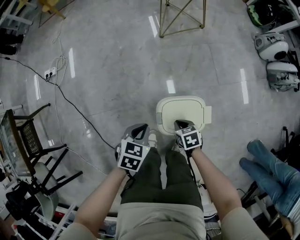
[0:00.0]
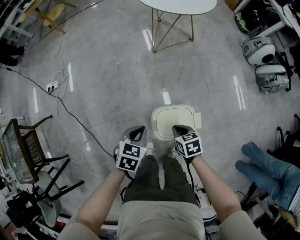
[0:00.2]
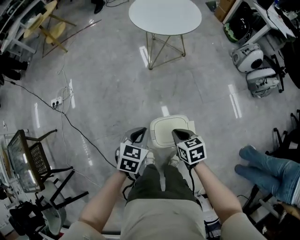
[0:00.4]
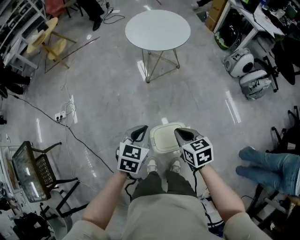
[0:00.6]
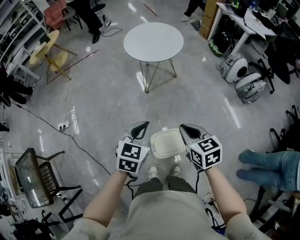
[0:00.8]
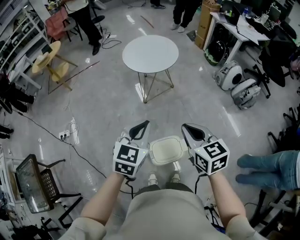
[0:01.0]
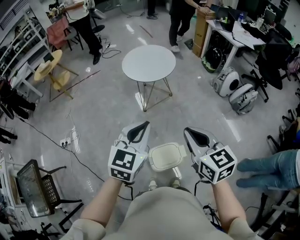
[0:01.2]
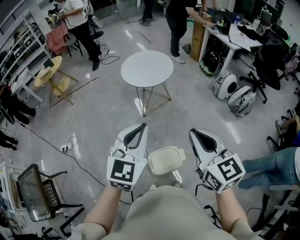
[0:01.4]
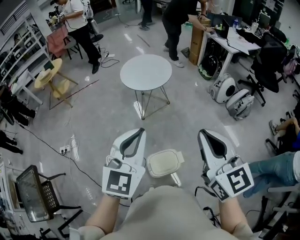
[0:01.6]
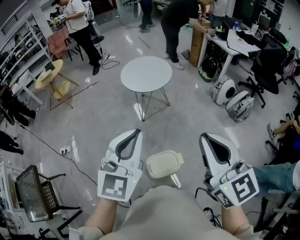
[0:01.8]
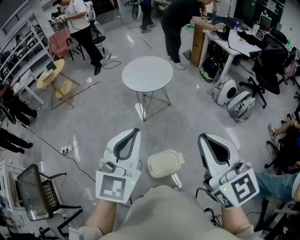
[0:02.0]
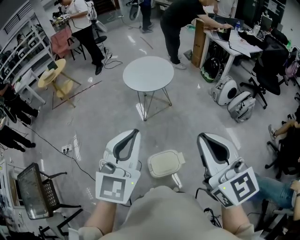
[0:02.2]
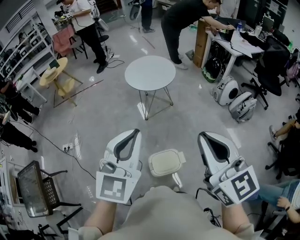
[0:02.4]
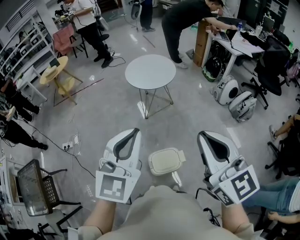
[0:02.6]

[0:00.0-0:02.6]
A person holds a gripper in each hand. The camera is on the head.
0:00.0 to 0:01.2: The grippers both shift upward by approximately 60 cm. The left gripper angles its fingers upward, by about 40 degrees, while the right gripper angles its fingers upward, by approximately 40 degrees.
0:01.2 to 0:02.6: Both grippers move upward and backward, roughly 15 cm. The right gripper changes its angle by about 20 degrees.

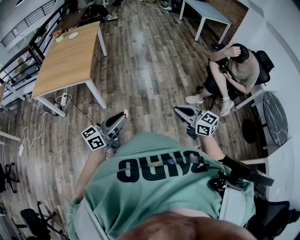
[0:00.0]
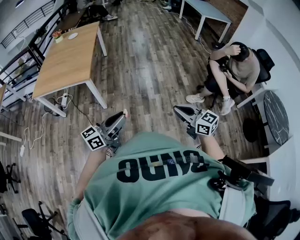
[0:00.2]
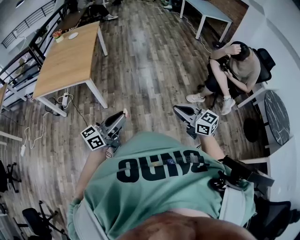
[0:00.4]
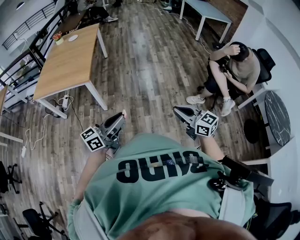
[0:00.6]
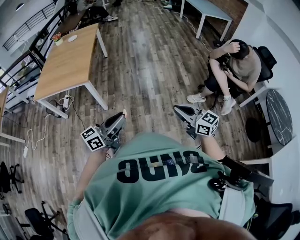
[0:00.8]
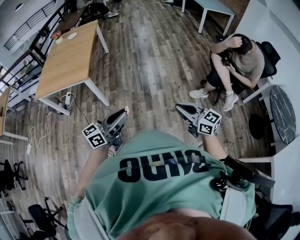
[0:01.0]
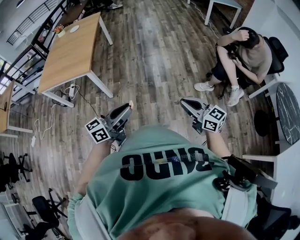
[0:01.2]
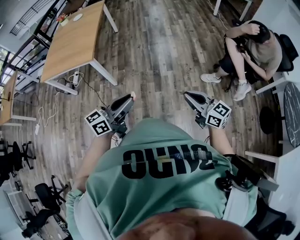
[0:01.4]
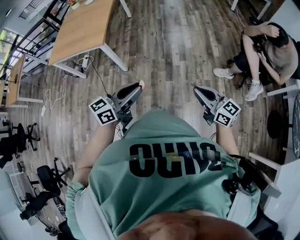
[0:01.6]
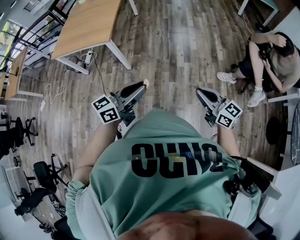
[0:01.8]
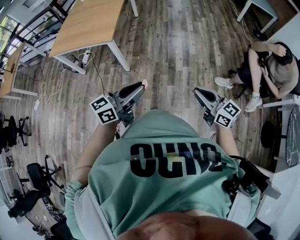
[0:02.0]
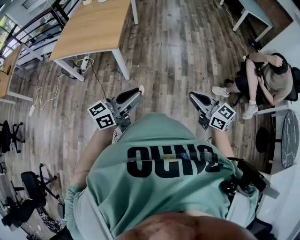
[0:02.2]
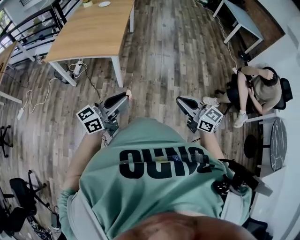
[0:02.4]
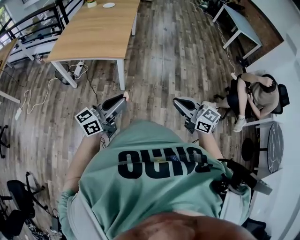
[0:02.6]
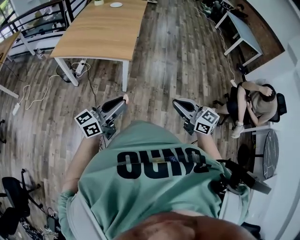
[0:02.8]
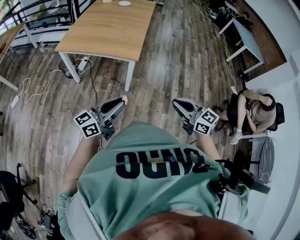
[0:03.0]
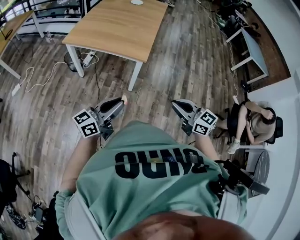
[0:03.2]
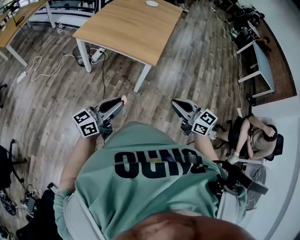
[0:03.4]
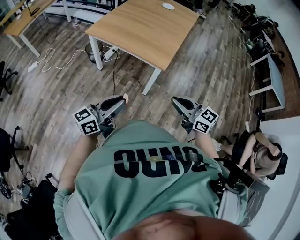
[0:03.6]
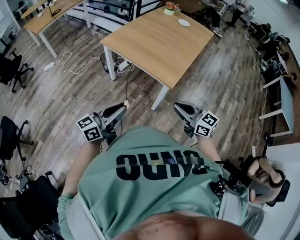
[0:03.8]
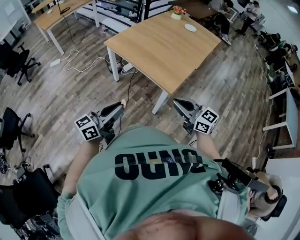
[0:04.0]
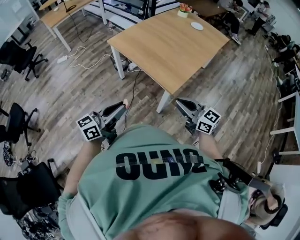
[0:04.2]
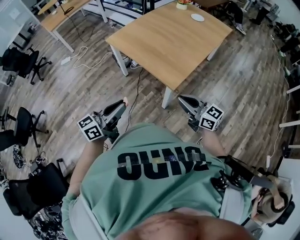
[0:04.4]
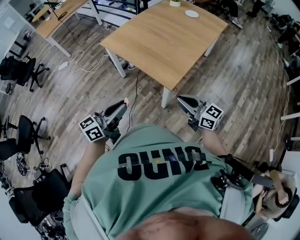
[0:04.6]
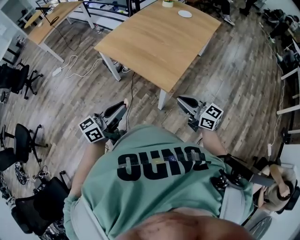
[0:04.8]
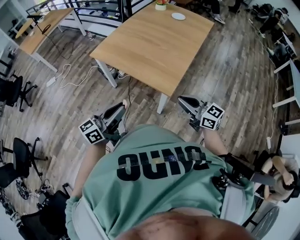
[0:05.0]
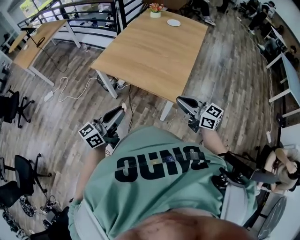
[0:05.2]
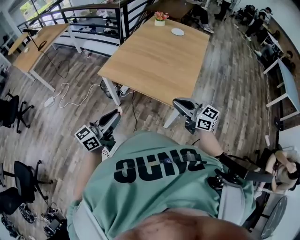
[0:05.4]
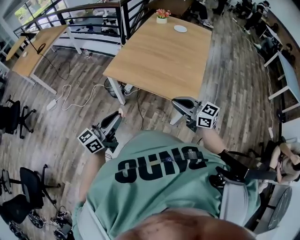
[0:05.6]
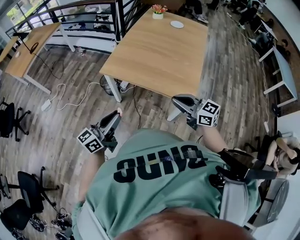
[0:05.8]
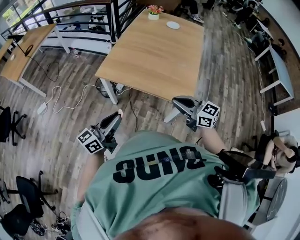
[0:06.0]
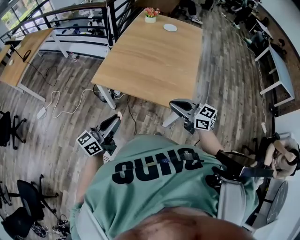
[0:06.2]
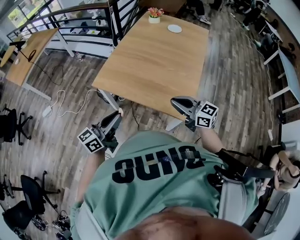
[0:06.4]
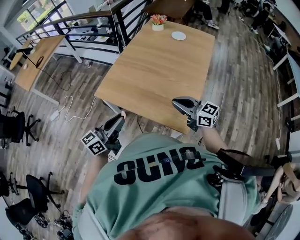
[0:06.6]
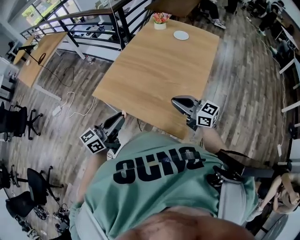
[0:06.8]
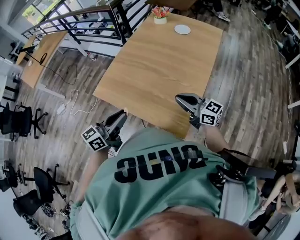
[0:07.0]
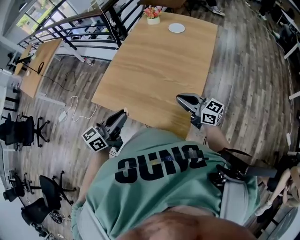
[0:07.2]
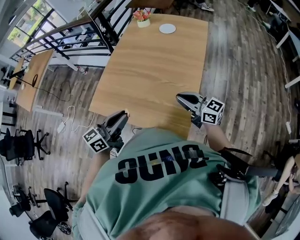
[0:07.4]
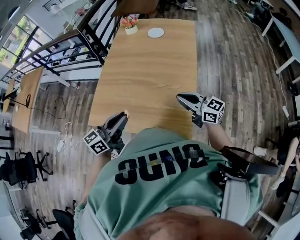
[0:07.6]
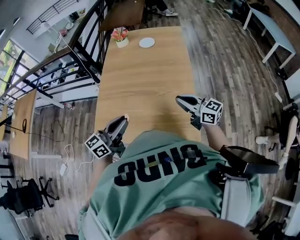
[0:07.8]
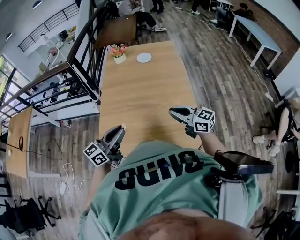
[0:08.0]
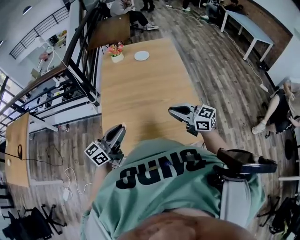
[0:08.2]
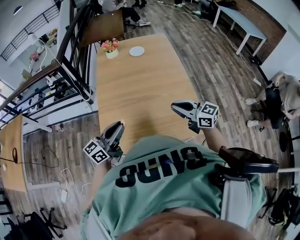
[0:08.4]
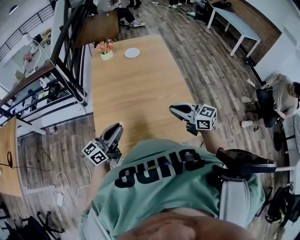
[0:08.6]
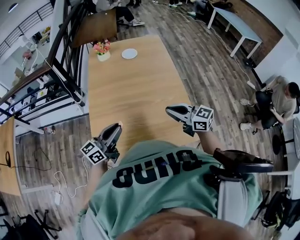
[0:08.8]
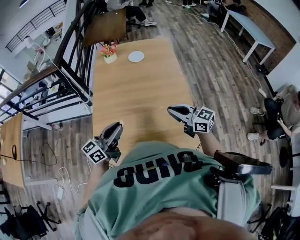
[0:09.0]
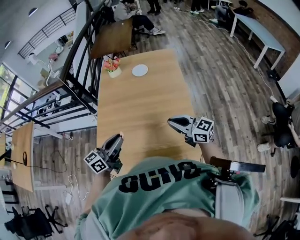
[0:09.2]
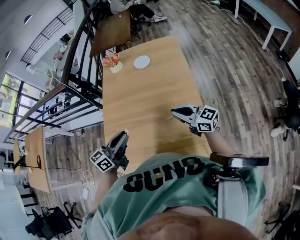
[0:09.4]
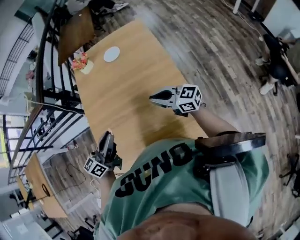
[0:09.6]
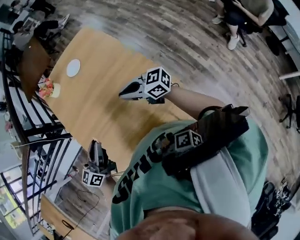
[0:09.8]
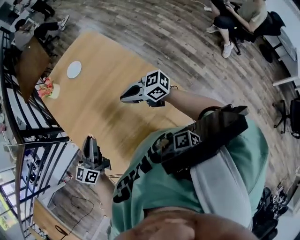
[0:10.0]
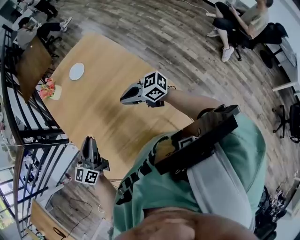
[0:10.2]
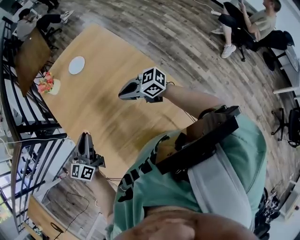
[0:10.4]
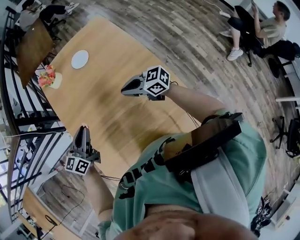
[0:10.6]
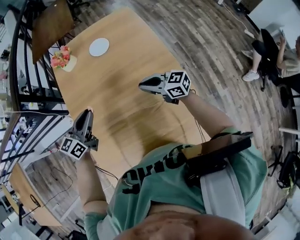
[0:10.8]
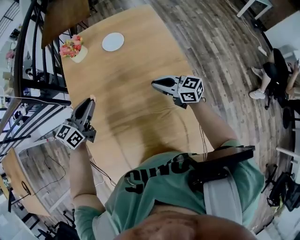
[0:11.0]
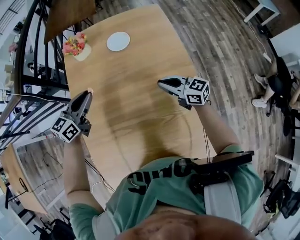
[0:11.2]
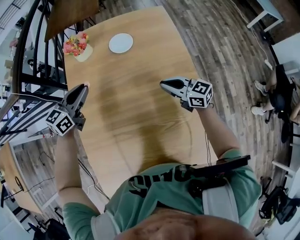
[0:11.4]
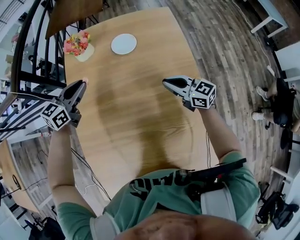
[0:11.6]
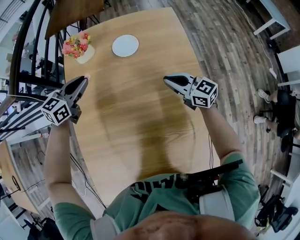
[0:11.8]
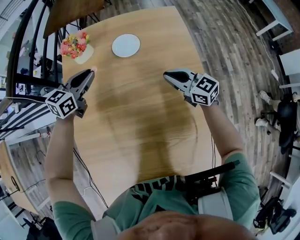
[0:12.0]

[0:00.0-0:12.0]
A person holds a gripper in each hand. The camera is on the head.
0:00.0 to 0:01.6: The grippers both shift to the right by approximately 10 cm.
0:01.6 to 0:03.0: Both grippers are carried to the left, approximately 50 cm. The right gripper swivels roughly 20 degrees.
0:03.0 to 0:04.4: The right gripper changes place by about 35 cm, and rotates some 40 degrees, while the left gripper shifts by roughly 20 cm, and swivels roughly 40 degrees.
0:04.4 to 0:06.0: Both grippers travel together to the left and forward, approximately 30 cm.
0:06.0 to 0:07.6: The two grippers go roughly 35 cm forward and to the right.
0:07.6 to 0:09.0: The left gripper moves forward and to the left, roughly 15 cm; the right gripper goes approximately 10 cm to the left.
0:09.0 to 0:10.4: The right gripper travels forward and downward by about 20 cm. Meanwhile the left gripper shifts roughly 20 cm forward.
0:10.4 to 0:12.0: The left gripper moves forward, roughly 40 cm. The right gripper heads forward and downward, covering approximately 35 cm.

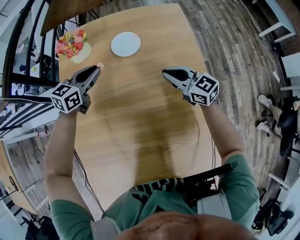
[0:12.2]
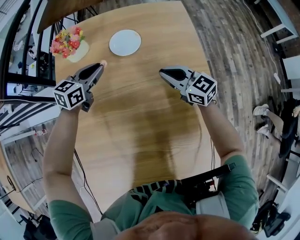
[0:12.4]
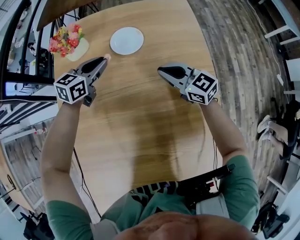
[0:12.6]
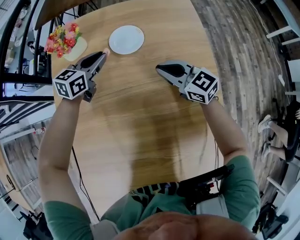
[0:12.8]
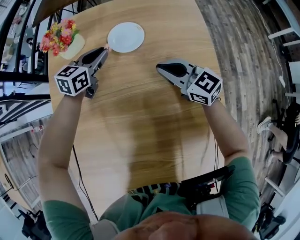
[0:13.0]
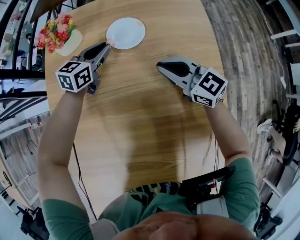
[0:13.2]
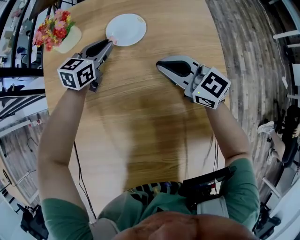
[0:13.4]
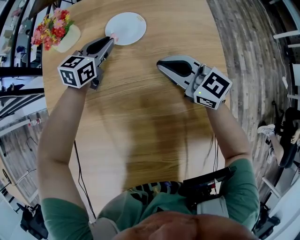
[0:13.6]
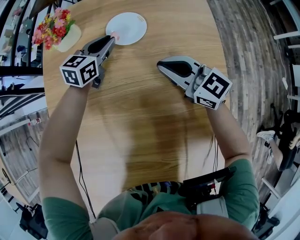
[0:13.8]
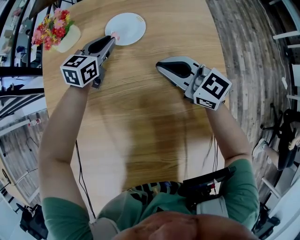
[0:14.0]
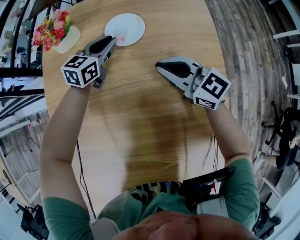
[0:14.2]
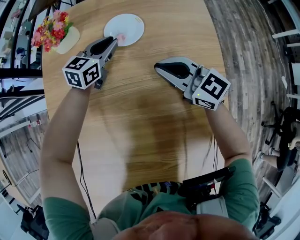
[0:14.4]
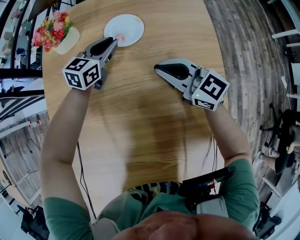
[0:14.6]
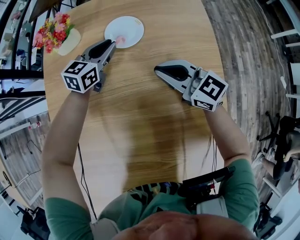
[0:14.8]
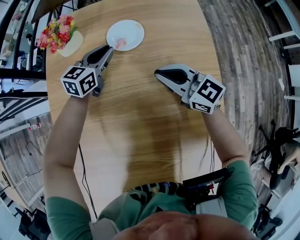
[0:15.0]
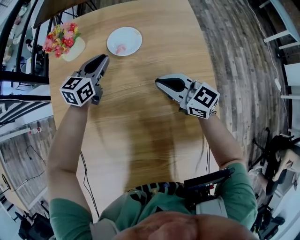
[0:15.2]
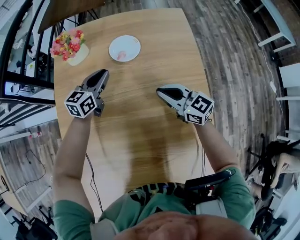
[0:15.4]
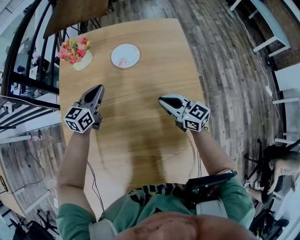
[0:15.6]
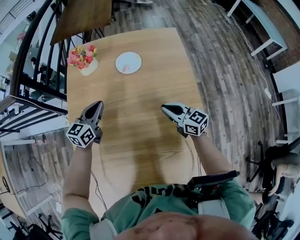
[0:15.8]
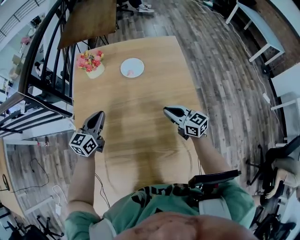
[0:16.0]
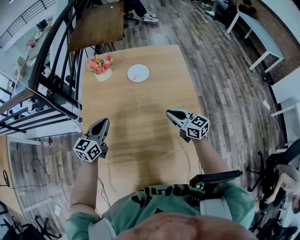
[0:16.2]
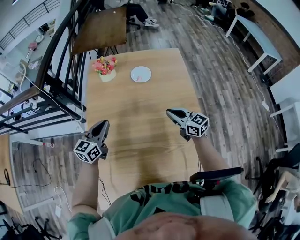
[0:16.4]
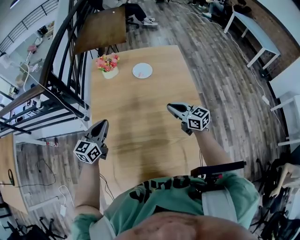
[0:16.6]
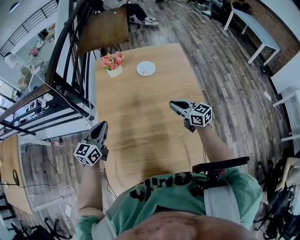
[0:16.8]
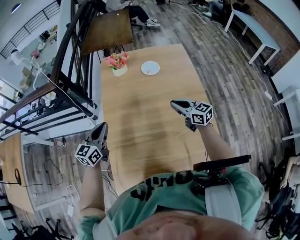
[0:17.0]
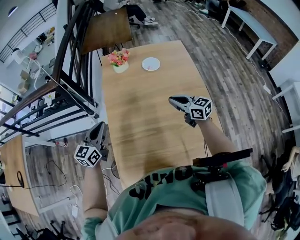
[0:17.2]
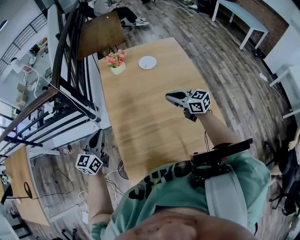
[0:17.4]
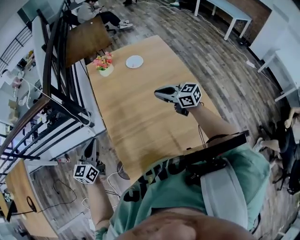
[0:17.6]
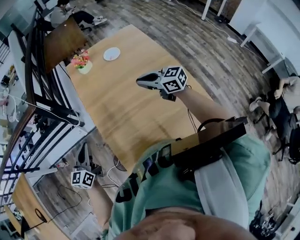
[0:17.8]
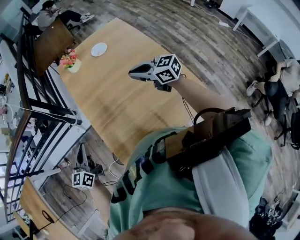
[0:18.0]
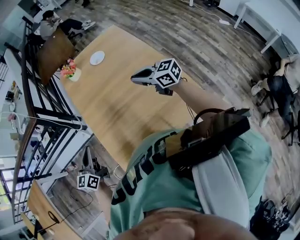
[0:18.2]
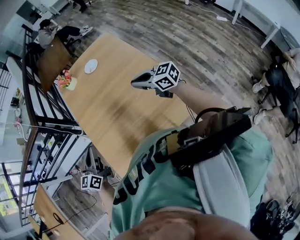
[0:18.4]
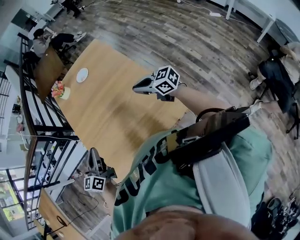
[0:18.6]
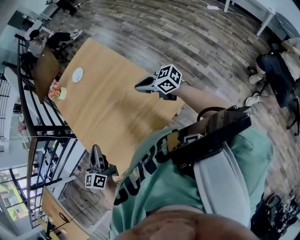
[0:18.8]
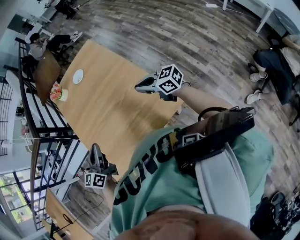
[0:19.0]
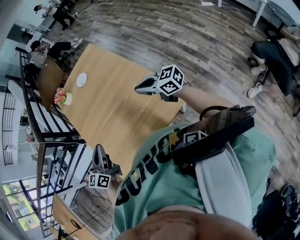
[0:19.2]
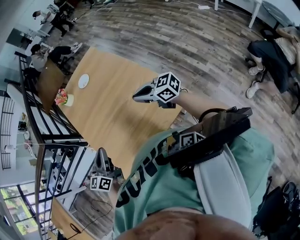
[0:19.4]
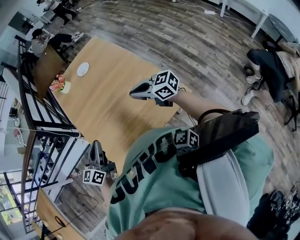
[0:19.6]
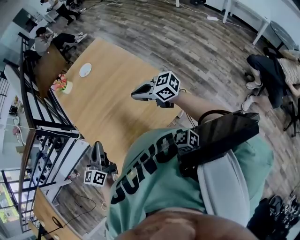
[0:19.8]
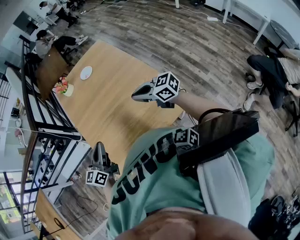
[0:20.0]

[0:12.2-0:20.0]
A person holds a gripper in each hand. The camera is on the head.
0:12.2 to 0:13.8: The right gripper goes about 5 cm forward, while the left gripper goes roughly 20 cm downward, forward and to the right.
0:13.8 to 0:15.4: The right gripper goes approximately 5 cm backward. Meanwhile the left gripper travels backward and upward by approximately 10 cm.
0:15.4 to 0:16.8: The left gripper heads backward, upward and to the left, covering about 50 cm. The right gripper heads backward and upward, covering about 25 cm.
0:16.8 to 0:18.4: Both grippers travel together backward, some 25 cm.
0:18.4 to 0:20.0: The left gripper shifts roughly 10 cm to the right and backward, while the right gripper heads backward, covering about 10 cm, and moves approximately 15 cm to the right and comes back.

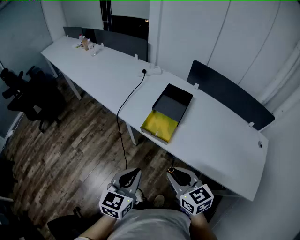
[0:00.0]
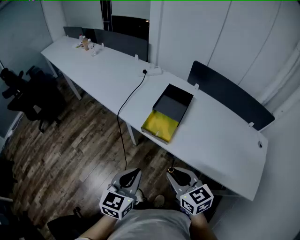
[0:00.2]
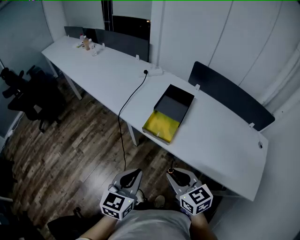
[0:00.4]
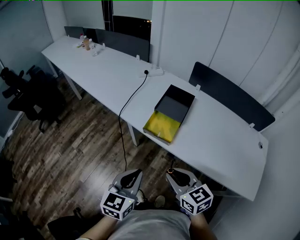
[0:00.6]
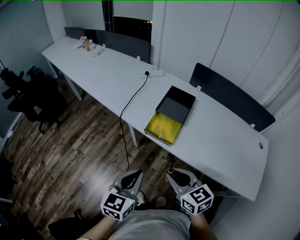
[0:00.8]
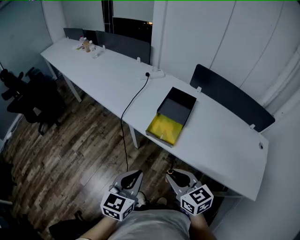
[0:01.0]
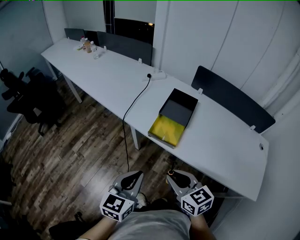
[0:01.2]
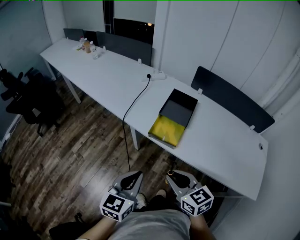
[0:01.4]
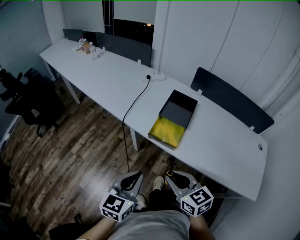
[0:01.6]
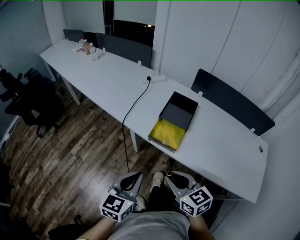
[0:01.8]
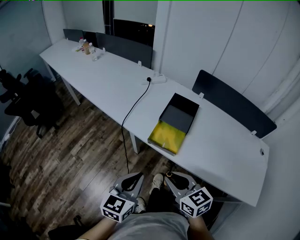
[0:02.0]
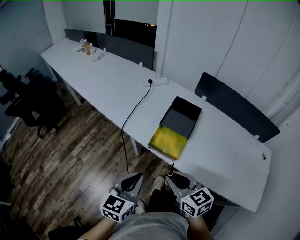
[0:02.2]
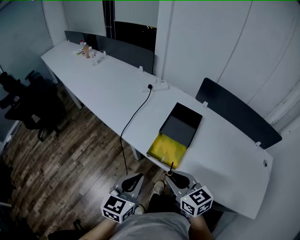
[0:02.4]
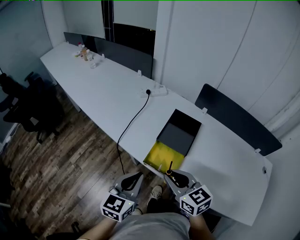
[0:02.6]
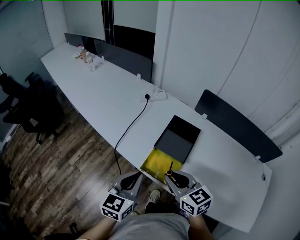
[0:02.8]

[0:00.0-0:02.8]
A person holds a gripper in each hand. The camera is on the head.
0:00.0 to 0:01.4: Both grippers move to the left, some 5 cm.
0:01.4 to 0:02.8: The two grippers go some 20 cm forward.
